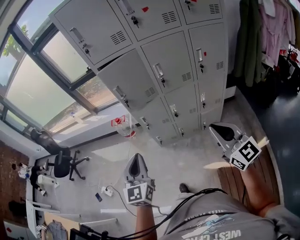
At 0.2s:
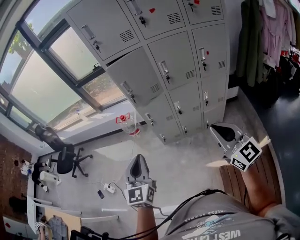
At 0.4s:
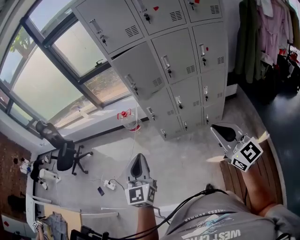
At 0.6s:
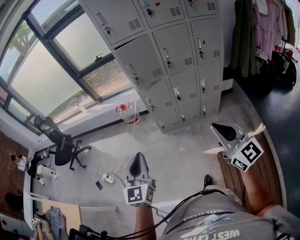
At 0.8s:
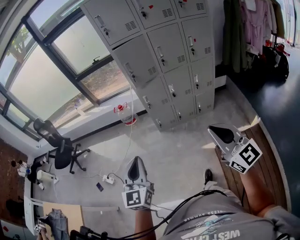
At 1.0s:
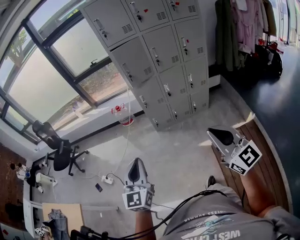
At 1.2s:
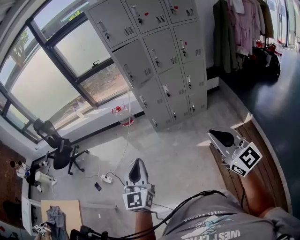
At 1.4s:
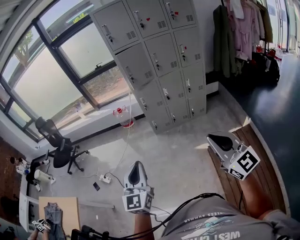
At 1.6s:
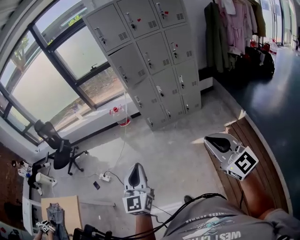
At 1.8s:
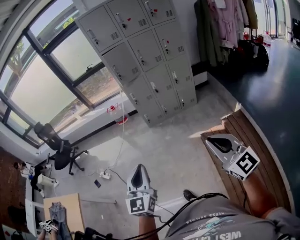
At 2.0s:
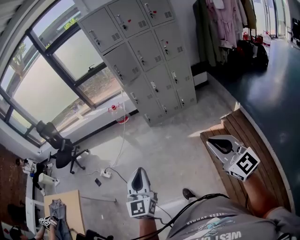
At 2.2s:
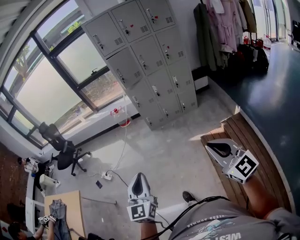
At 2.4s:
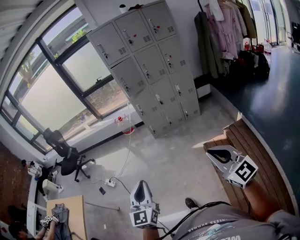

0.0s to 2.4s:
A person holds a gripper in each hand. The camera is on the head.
0.0s to 1.2s: The pair of grippers is taken backward and to the left, approximately 40 cm.
1.2s to 2.4s: Both grippers travel together backward, roughly 30 cm.

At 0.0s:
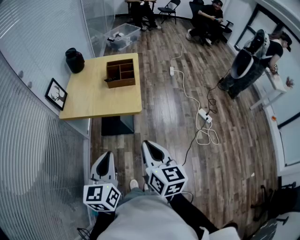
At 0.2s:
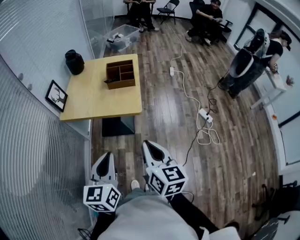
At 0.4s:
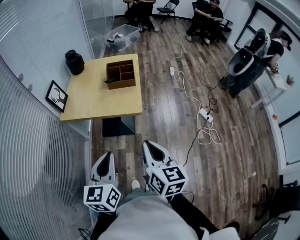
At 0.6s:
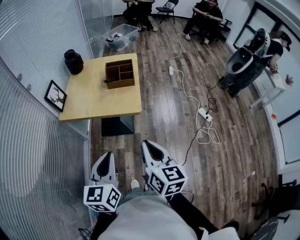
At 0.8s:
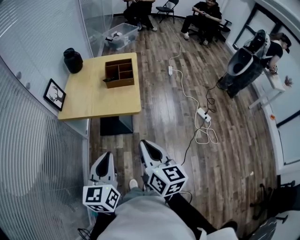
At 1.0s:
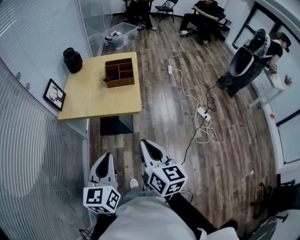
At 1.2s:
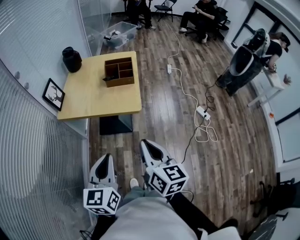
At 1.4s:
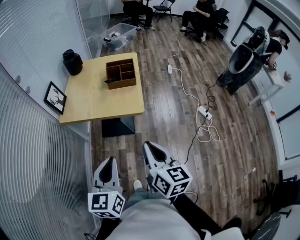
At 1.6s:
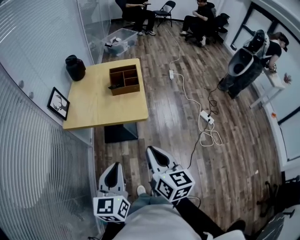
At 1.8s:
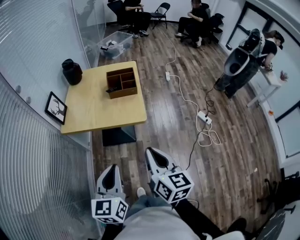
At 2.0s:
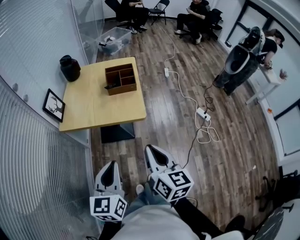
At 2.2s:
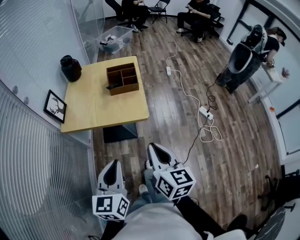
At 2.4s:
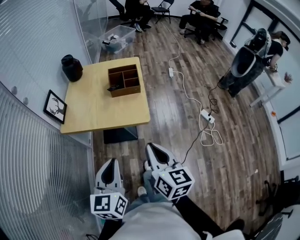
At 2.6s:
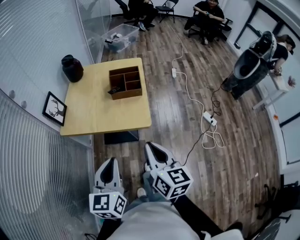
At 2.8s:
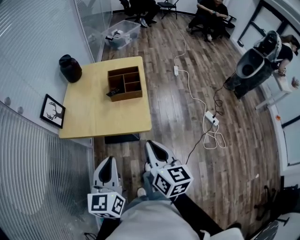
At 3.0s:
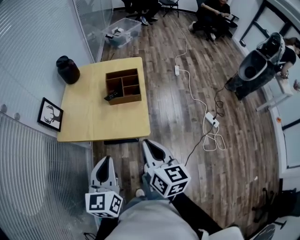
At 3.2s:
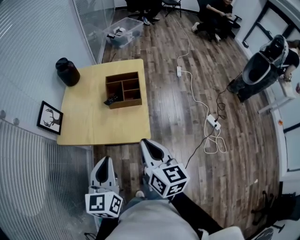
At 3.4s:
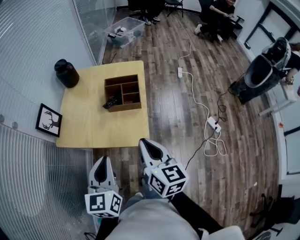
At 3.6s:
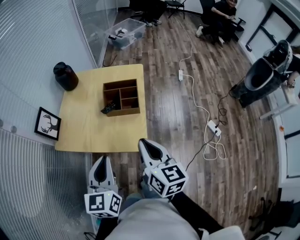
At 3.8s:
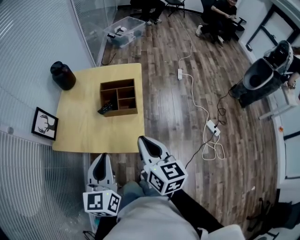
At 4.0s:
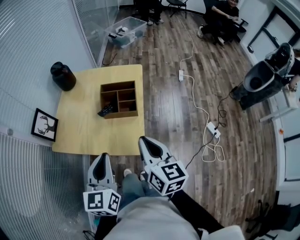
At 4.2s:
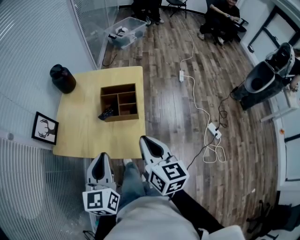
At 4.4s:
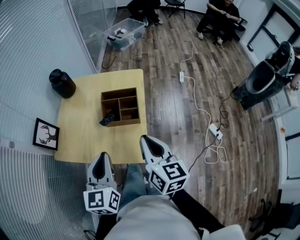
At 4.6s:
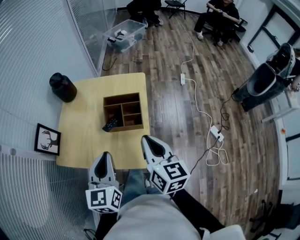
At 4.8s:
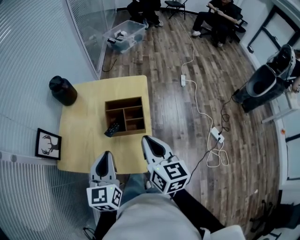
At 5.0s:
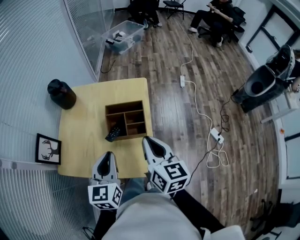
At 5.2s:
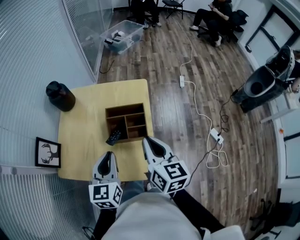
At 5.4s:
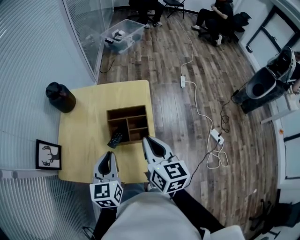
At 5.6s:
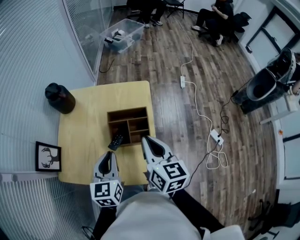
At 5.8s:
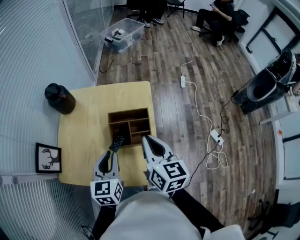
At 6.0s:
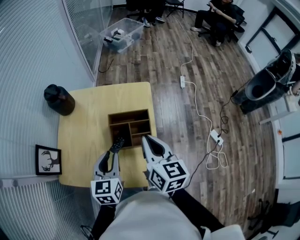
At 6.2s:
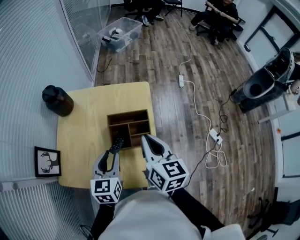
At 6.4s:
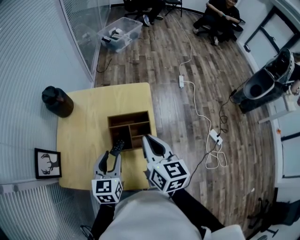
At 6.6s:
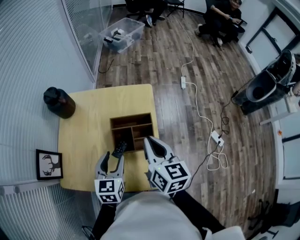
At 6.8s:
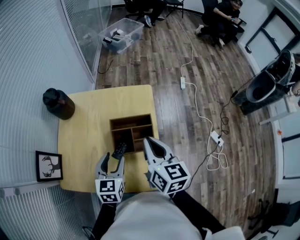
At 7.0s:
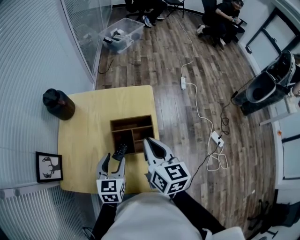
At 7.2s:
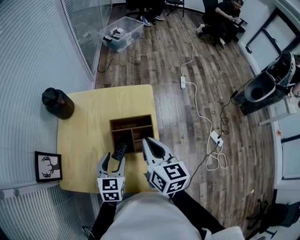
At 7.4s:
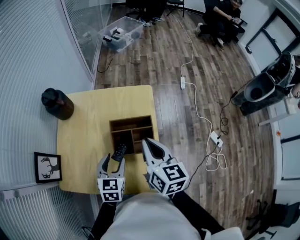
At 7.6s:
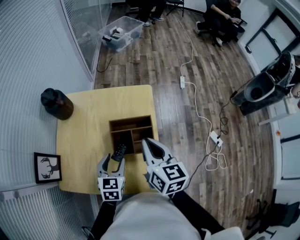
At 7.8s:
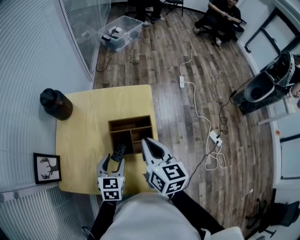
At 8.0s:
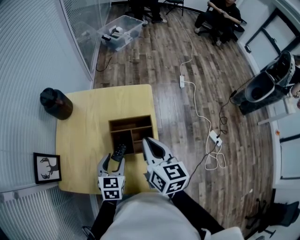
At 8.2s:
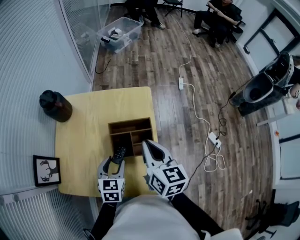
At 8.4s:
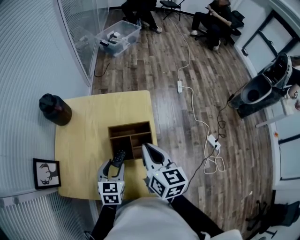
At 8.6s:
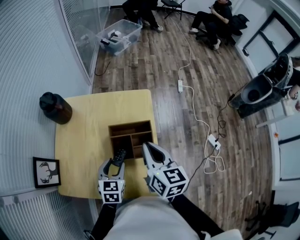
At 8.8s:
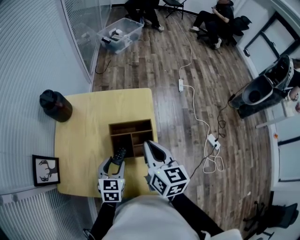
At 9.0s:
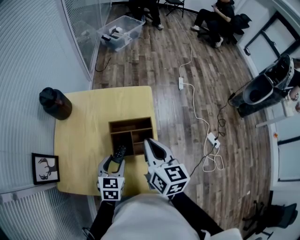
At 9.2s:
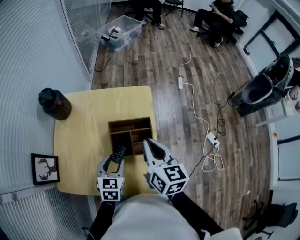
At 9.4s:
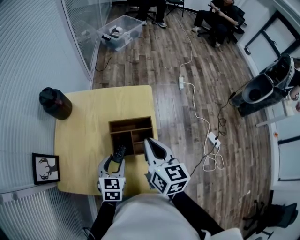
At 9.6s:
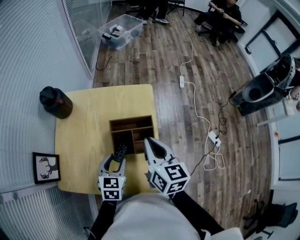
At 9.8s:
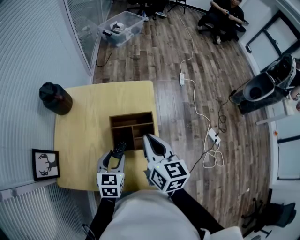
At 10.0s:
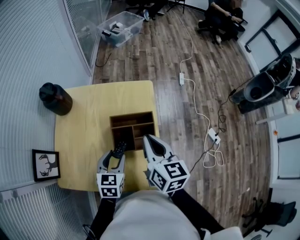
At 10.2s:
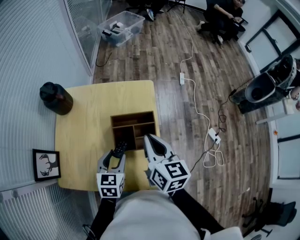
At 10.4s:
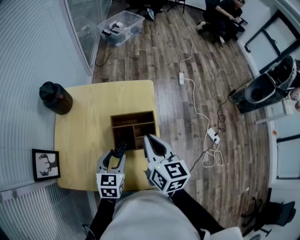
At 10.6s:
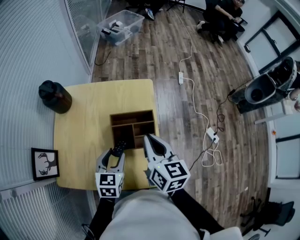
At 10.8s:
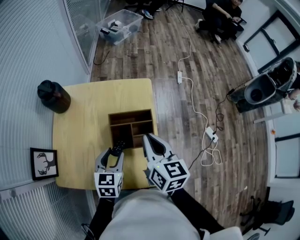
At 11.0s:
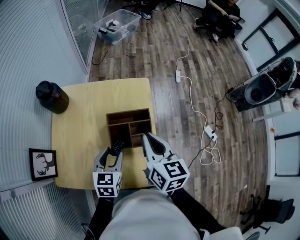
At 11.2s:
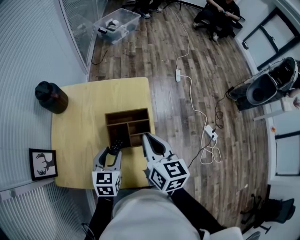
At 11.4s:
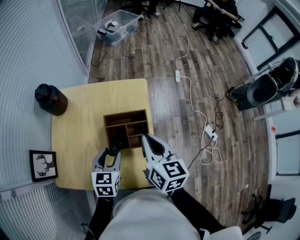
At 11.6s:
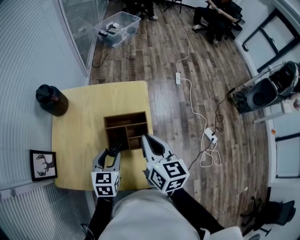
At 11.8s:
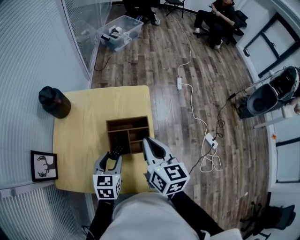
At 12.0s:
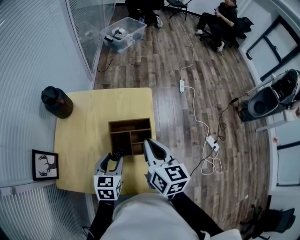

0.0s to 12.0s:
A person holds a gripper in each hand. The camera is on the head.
0.0s to 1.6s: There are only small adjustments of the grippers.
1.6s to 3.0s: The grippers both shift forward by approximately 15 cm.
3.0s to 4.4s: The two grippers go approximately 15 cm forward.
4.4s to 6.0s: The left gripper shifts about 20 cm forward and downward. Meanwhile the right gripper moves forward, some 15 cm.
6.0s to 7.6s: The left gripper moves downward, roughly 10 cm, and opens up.
7.6s to 12.0s: The grippers move only a little.

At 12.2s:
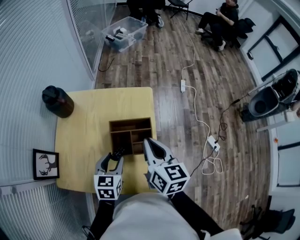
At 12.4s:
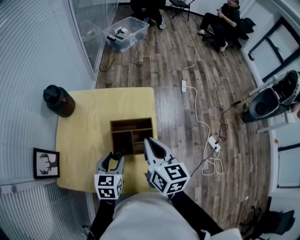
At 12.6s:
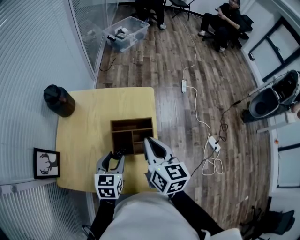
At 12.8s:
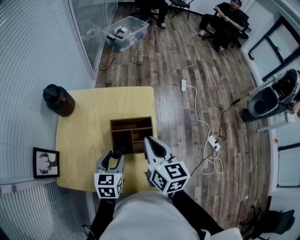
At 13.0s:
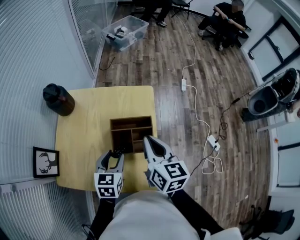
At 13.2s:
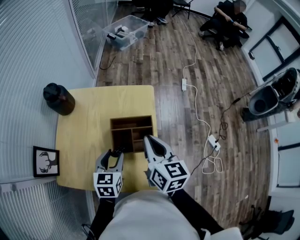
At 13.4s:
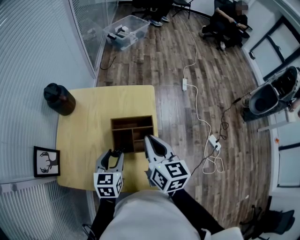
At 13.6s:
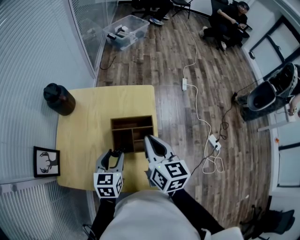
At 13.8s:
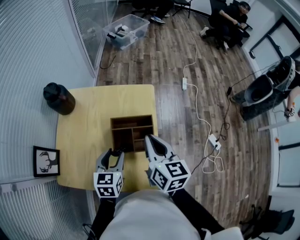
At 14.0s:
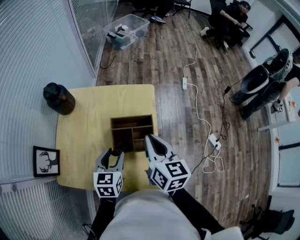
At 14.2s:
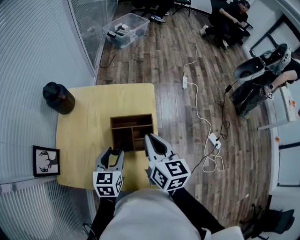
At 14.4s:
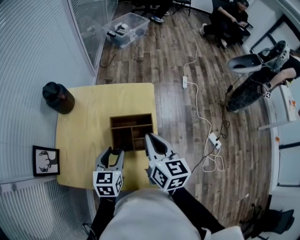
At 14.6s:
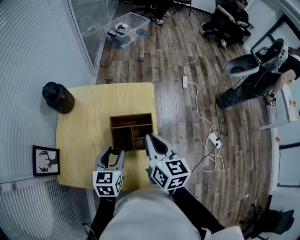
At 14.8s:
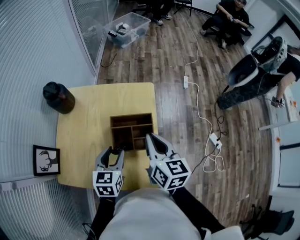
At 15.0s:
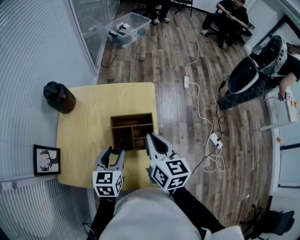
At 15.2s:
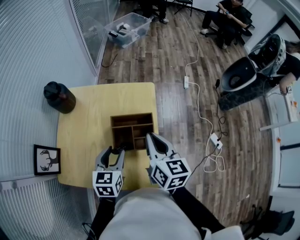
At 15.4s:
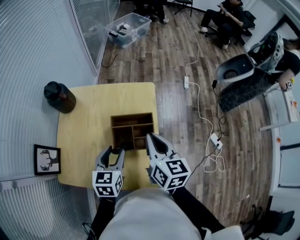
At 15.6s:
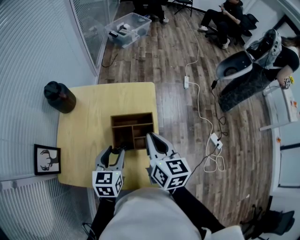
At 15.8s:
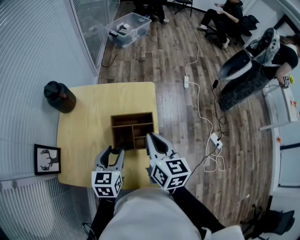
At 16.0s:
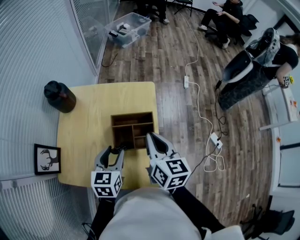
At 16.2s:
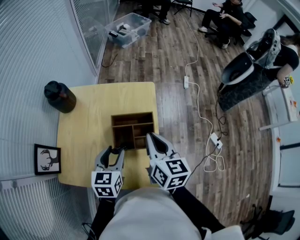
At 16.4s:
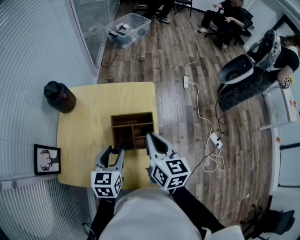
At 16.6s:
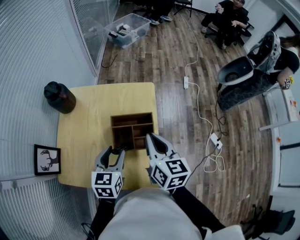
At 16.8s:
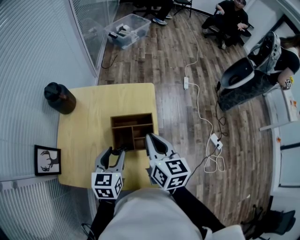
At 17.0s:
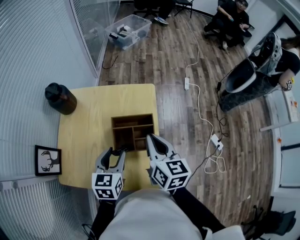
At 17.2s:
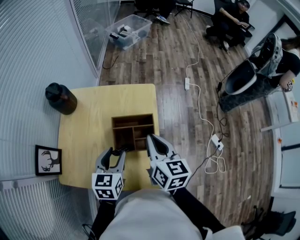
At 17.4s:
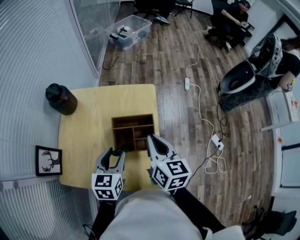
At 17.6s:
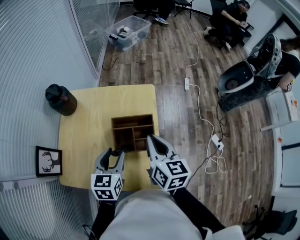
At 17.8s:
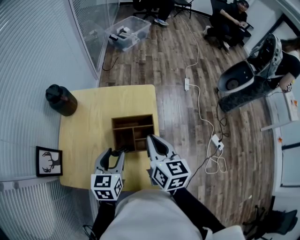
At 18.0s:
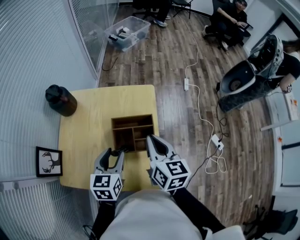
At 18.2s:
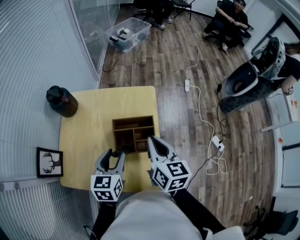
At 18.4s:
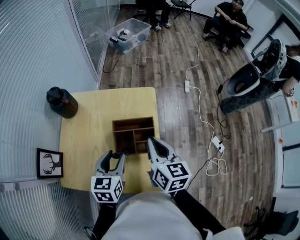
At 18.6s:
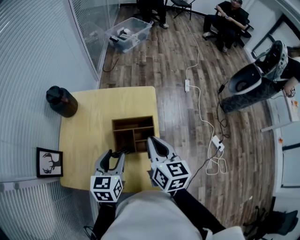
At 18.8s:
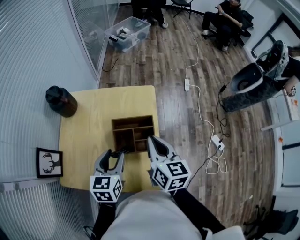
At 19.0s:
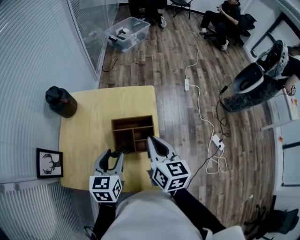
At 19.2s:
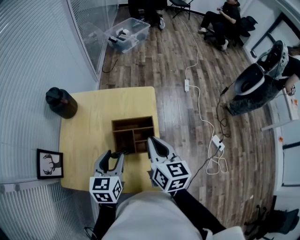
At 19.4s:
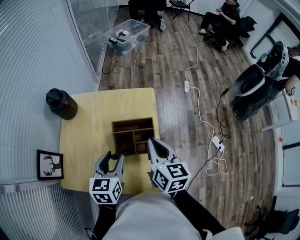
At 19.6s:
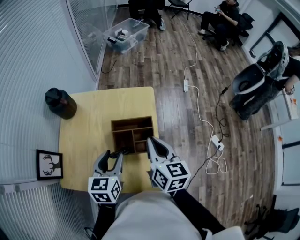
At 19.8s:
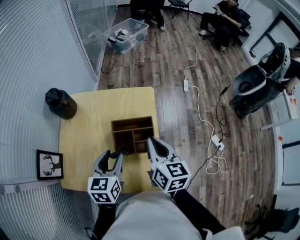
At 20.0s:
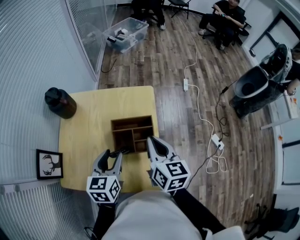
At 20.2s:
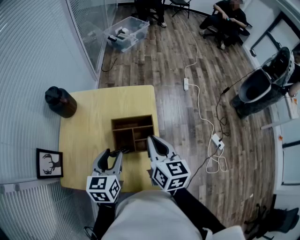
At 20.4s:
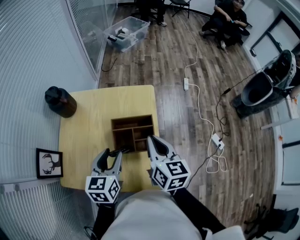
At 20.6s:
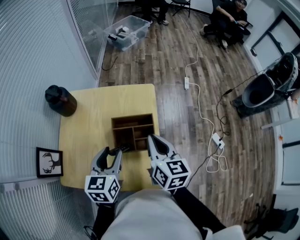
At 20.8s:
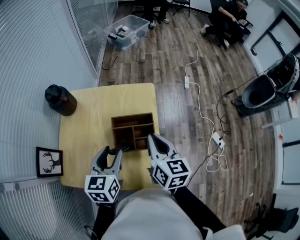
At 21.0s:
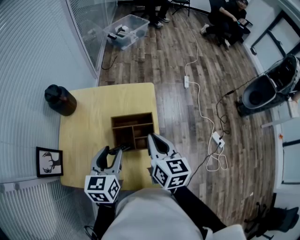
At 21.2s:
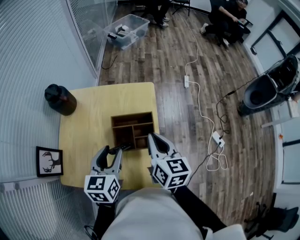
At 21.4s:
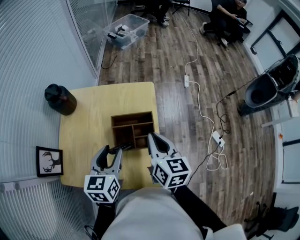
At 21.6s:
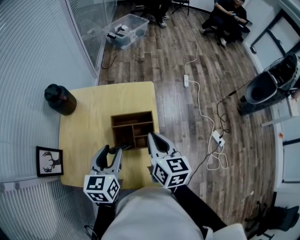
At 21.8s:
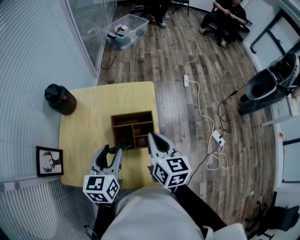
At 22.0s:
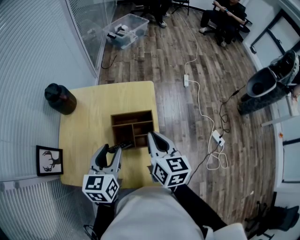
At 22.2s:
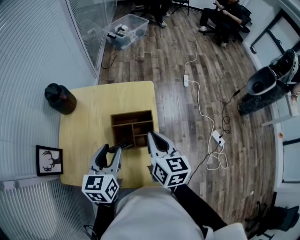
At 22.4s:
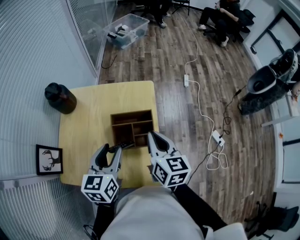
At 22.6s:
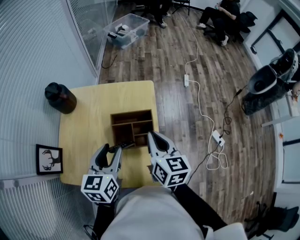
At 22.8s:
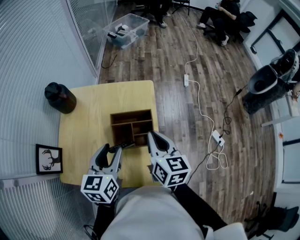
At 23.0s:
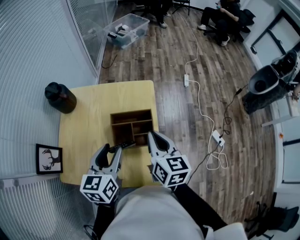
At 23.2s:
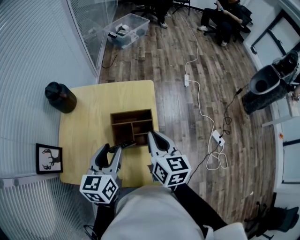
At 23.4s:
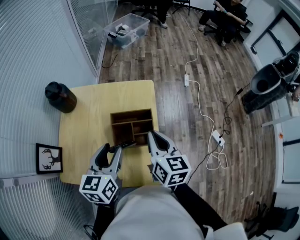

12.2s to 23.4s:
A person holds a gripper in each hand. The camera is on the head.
12.2s to 13.8s: Both grippers stay about where they are.
13.8s to 17.0s: The grippers make only small movements.
17.0s to 18.6s: Neither gripper changes place.
18.6s to 20.2s: Both grippers stay put.
20.2s to 23.4s: The grippers move only a little.
